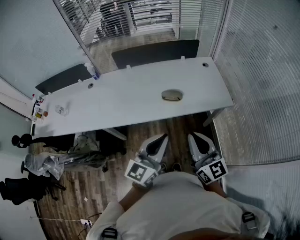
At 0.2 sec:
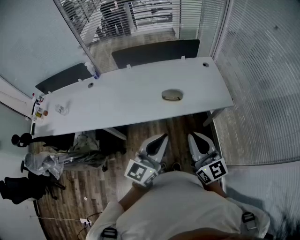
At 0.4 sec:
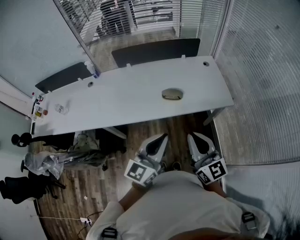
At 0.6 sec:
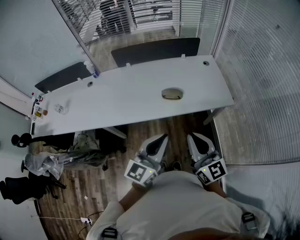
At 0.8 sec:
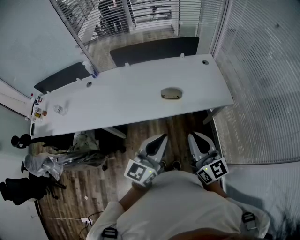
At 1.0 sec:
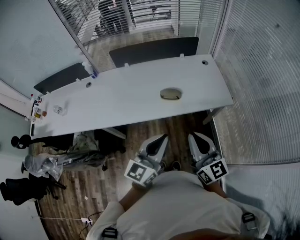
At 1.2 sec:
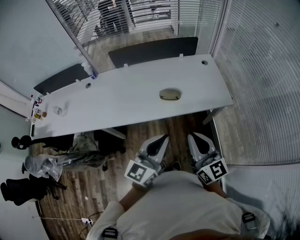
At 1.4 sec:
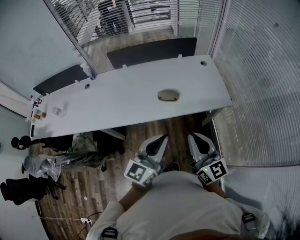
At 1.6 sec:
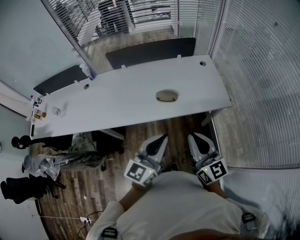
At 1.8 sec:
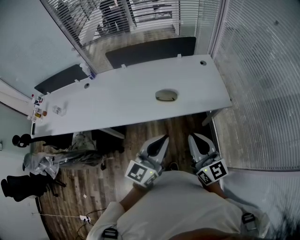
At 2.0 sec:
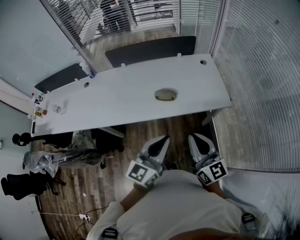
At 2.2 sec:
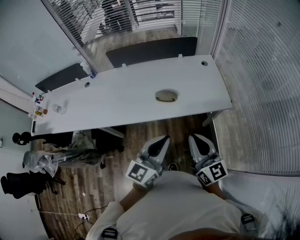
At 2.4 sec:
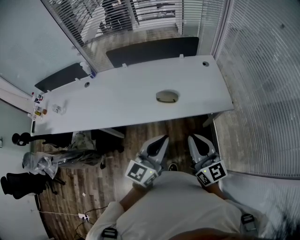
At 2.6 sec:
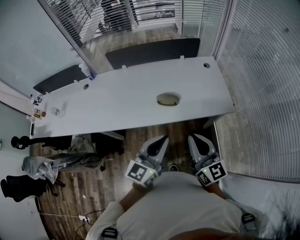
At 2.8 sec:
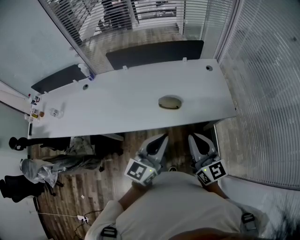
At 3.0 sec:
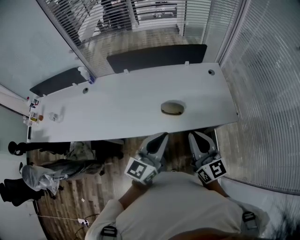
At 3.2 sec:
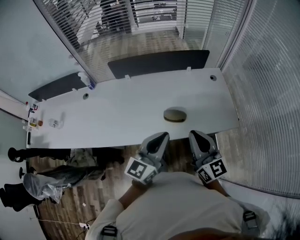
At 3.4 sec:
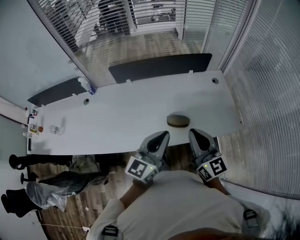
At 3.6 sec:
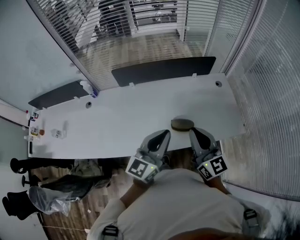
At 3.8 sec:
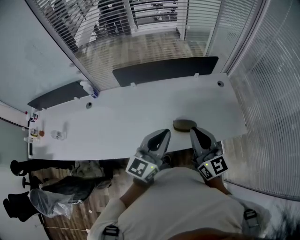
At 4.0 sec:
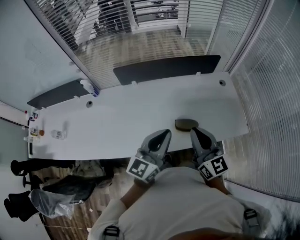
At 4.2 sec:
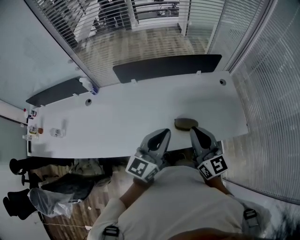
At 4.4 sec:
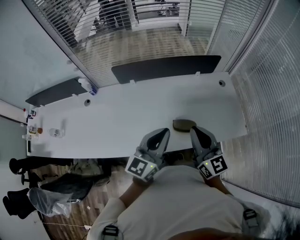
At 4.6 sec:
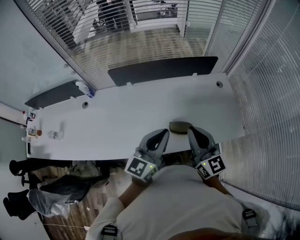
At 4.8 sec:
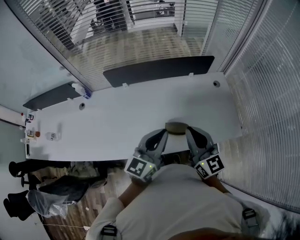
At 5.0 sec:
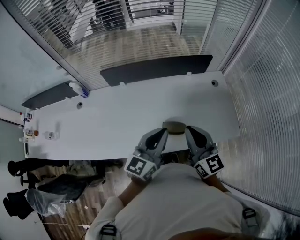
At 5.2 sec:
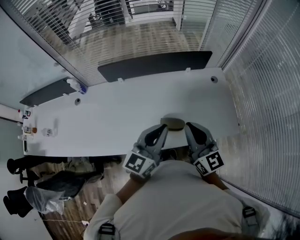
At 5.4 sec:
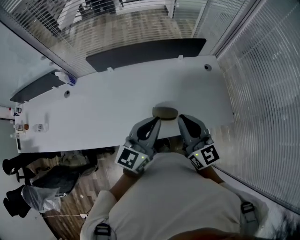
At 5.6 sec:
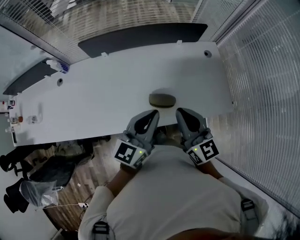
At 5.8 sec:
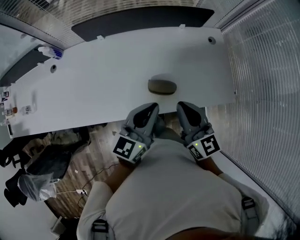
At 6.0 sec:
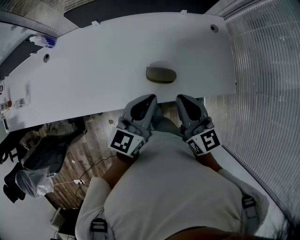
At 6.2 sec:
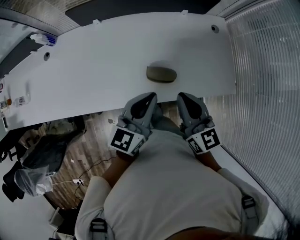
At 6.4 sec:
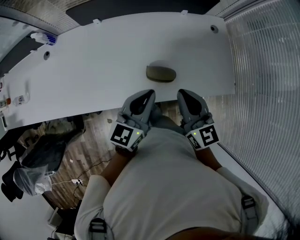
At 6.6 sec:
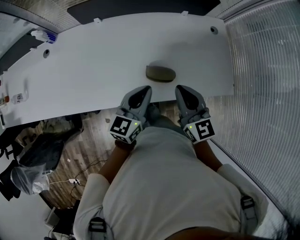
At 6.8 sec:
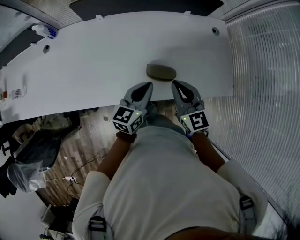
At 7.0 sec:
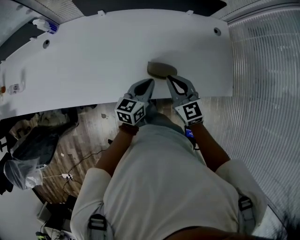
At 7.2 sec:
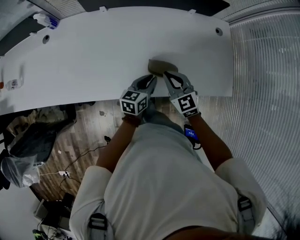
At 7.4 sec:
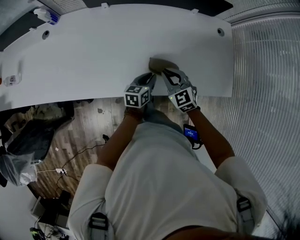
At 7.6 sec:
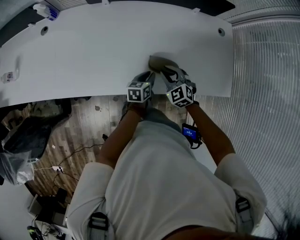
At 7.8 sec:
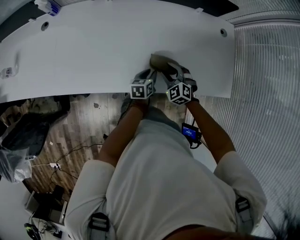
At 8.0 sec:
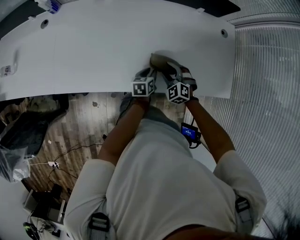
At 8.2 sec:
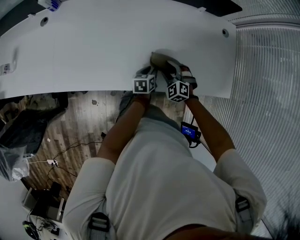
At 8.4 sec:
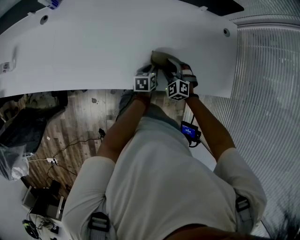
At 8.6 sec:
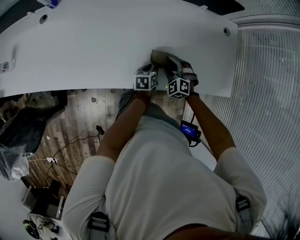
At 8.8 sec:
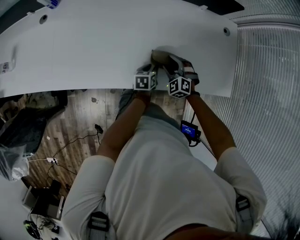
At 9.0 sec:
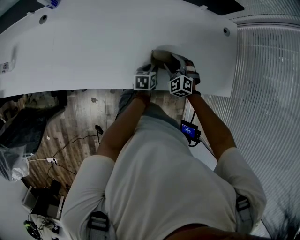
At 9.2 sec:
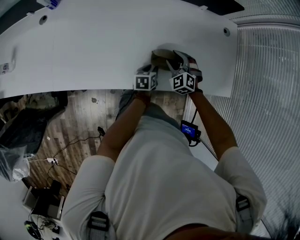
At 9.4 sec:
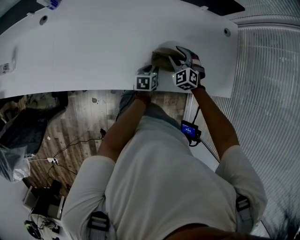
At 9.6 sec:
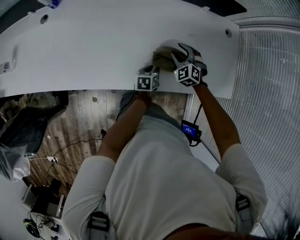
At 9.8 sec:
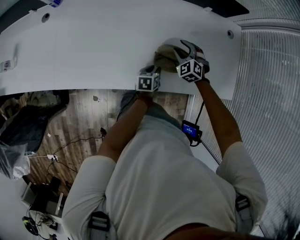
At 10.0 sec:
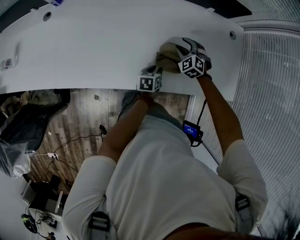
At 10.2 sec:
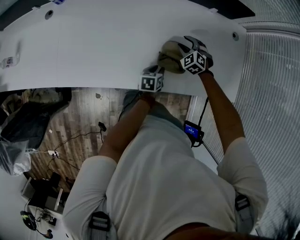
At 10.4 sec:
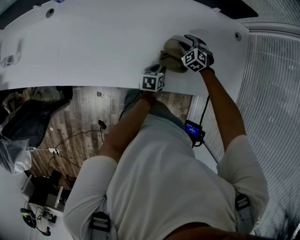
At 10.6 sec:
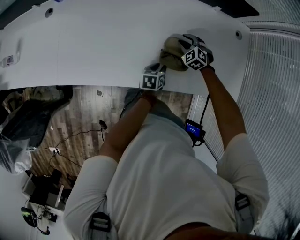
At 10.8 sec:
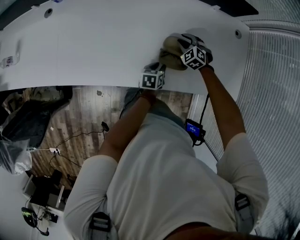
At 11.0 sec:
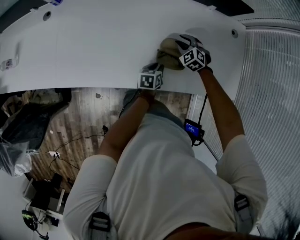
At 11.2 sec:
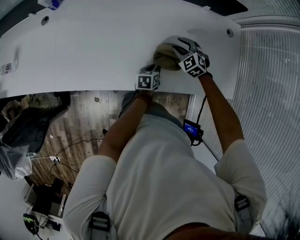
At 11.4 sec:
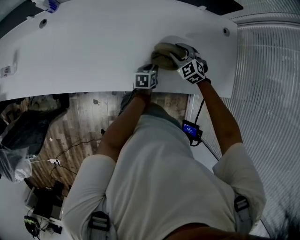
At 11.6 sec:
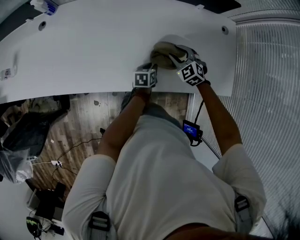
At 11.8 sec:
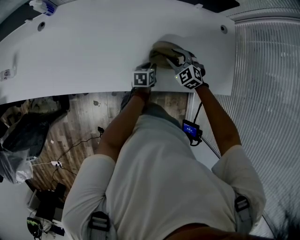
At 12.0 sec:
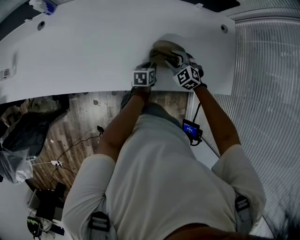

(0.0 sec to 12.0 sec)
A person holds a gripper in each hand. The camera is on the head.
0.0 sec - 1.6 sec: The right gripper shifts by some 5 cm; the left gripper shifts by about 5 cm.
1.6 sec - 3.0 sec: The grippers both shift forward by roughly 15 cm.
3.0 sec - 4.4 sec: Both grippers move forward and to the left, roughly 15 cm.
4.4 sec - 6.0 sec: Both grippers travel together downward and to the right, about 10 cm.
6.0 sec - 7.6 sec: The grippers both shift downward by roughly 25 cm. The left gripper turns by some 40 degrees. Meanwhile the right gripper twists approximately 40 degrees counterclockwise, seen from behind.
7.6 sec - 9.0 sec: The left gripper shifts by approximately 5 cm; the right gripper moves roughly 5 cm, and opens up.
9.0 sec - 10.4 sec: The right gripper heads forward, covering roughly 10 cm.
10.4 sec - 12.0 sec: The right gripper shifts roughly 10 cm backward.

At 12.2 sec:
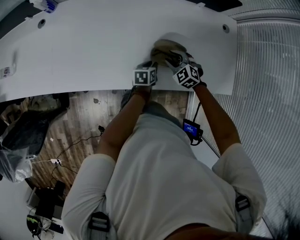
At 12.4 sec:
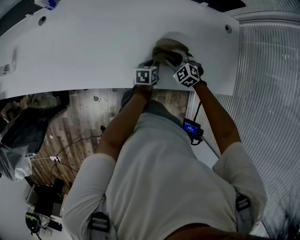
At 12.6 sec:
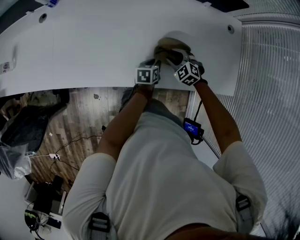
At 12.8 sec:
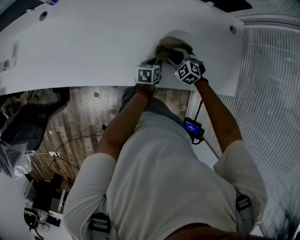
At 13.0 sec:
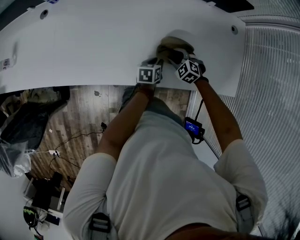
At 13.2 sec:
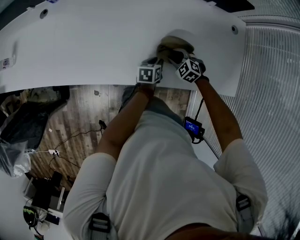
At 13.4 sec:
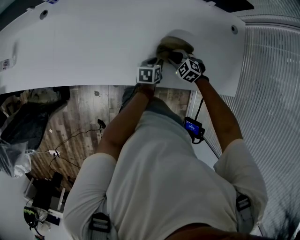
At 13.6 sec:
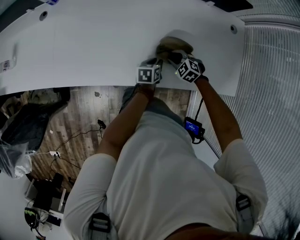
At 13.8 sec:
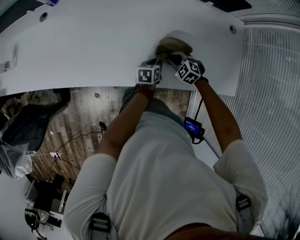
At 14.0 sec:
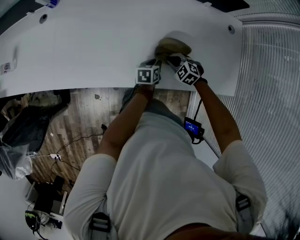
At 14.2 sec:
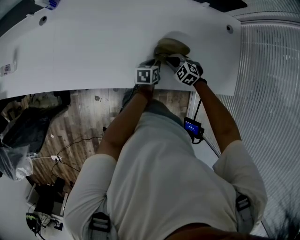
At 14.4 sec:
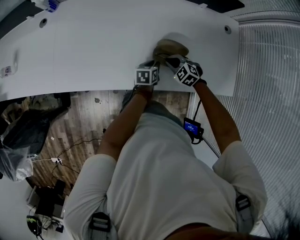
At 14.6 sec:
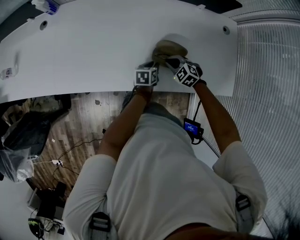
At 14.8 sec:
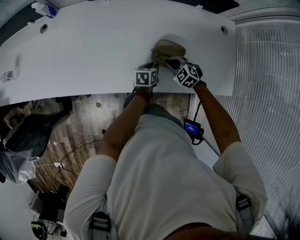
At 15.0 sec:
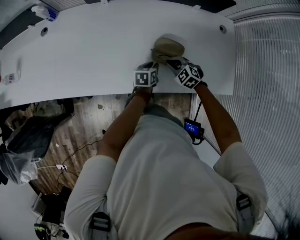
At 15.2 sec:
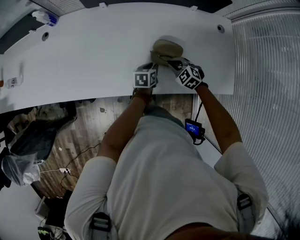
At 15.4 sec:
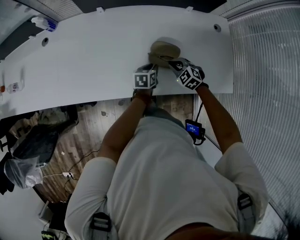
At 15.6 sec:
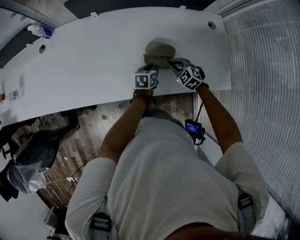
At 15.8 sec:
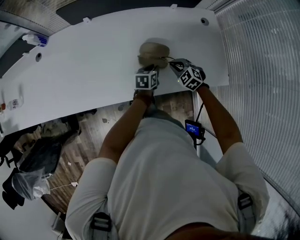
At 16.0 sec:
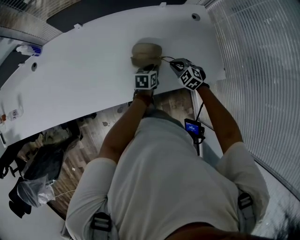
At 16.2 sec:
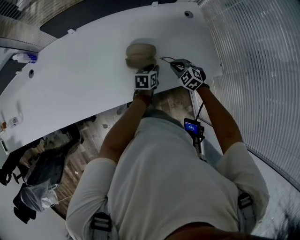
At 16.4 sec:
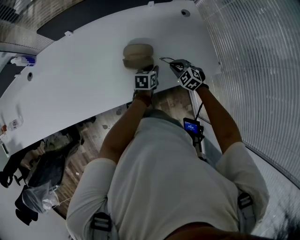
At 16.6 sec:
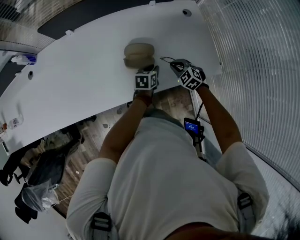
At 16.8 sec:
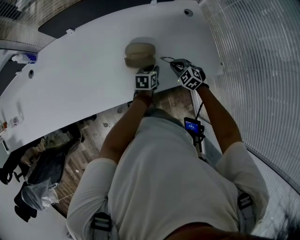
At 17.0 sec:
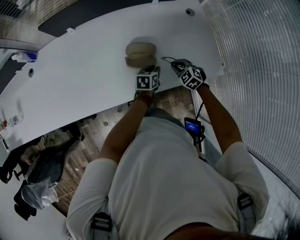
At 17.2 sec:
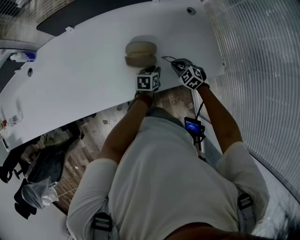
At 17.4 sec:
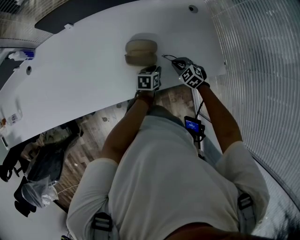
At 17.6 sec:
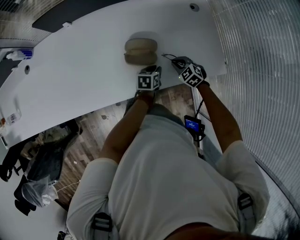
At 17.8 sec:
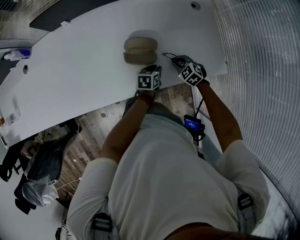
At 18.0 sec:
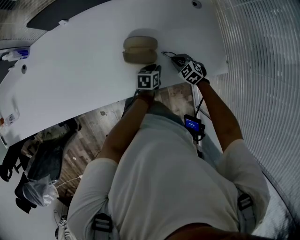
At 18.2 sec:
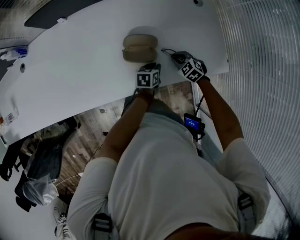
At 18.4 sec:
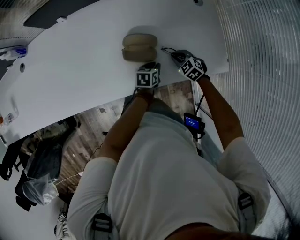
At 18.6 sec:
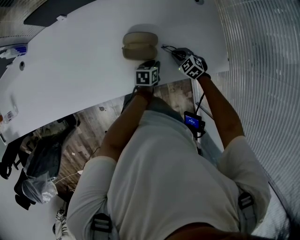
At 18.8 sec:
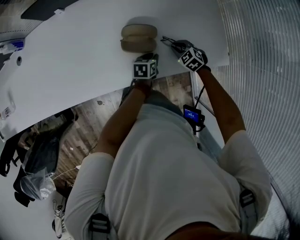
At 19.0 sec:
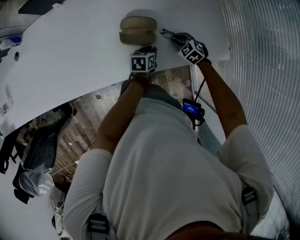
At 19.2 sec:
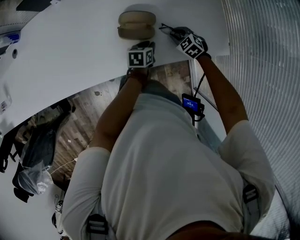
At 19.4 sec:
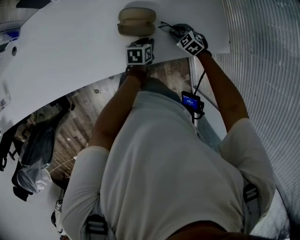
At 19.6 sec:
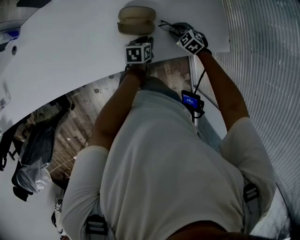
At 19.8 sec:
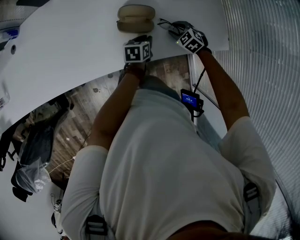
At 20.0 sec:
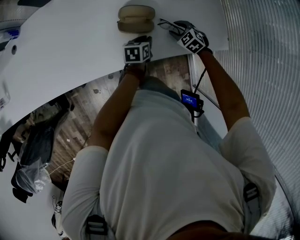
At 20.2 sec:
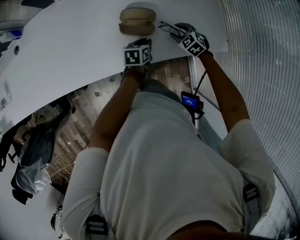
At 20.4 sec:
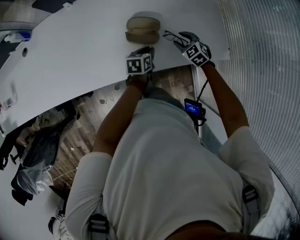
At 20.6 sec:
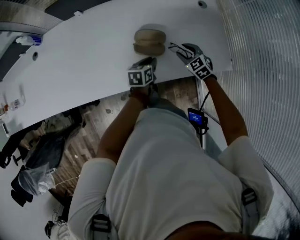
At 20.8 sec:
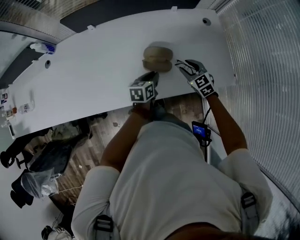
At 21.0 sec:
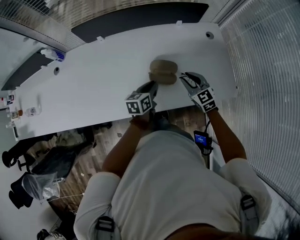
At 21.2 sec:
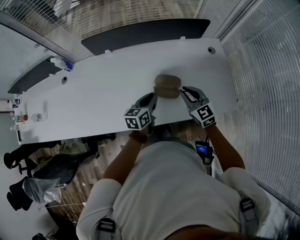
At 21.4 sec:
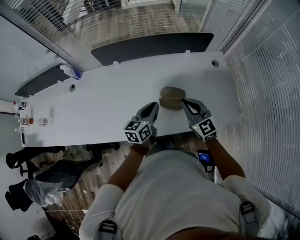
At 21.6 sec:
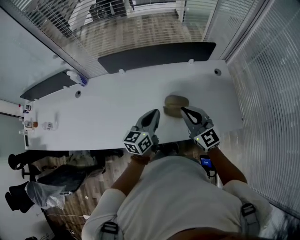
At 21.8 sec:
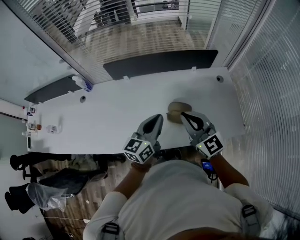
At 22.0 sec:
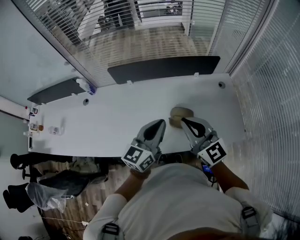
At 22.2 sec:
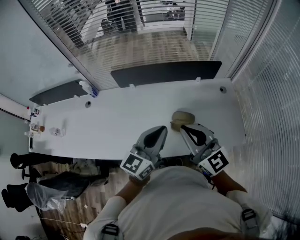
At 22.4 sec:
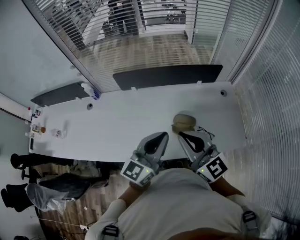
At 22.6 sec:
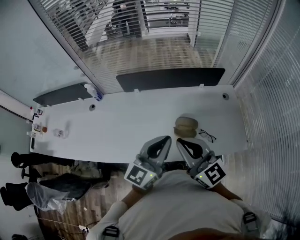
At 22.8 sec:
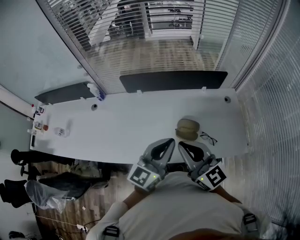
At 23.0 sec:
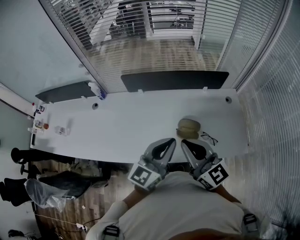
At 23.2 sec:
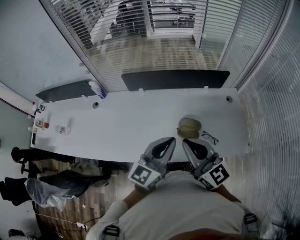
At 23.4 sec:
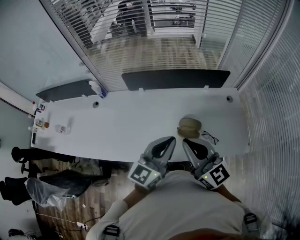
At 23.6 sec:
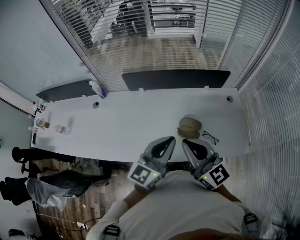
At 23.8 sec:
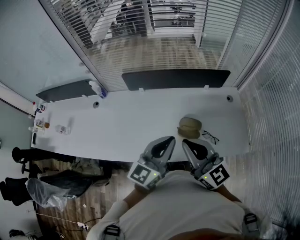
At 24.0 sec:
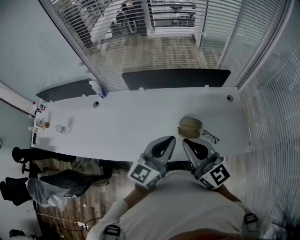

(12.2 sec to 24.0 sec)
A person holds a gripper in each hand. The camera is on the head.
12.2 sec - 13.6 sec: The right gripper shifts approximately 5 cm downward.
13.6 sec - 15.2 sec: The right gripper moves upward, roughly 5 cm.
15.2 sec - 16.6 sec: The grippers both shift to the right by approximately 15 cm.
16.6 sec - 18.2 sec: The grippers both shift downward by about 5 cm.
18.2 sec - 19.6 sec: The right gripper opens its fingers.
19.6 sec - 21.0 sec: The left gripper travels upward and to the left by roughly 20 cm, while the right gripper is displaced upward by roughly 20 cm, and angles its fingers upward, by about 30 degrees.
21.0 sec - 22.6 sec: The left gripper heads upward, covering some 30 cm, and angles its fingers upward, by roughly 40 degrees. Meanwhile the right gripper is displaced upward and to the left by roughly 35 cm, tilts its fingers about 30 degrees upward, and closes.
22.6 sec - 24.0 sec: Both grippers stay about where they are.
